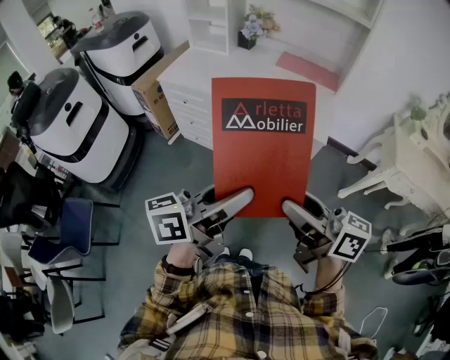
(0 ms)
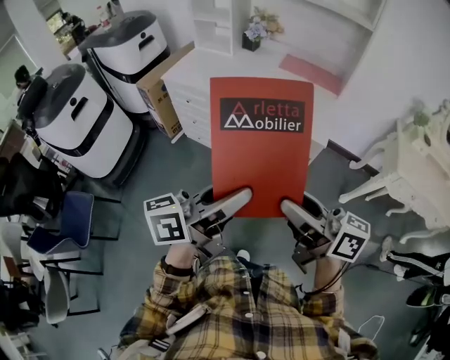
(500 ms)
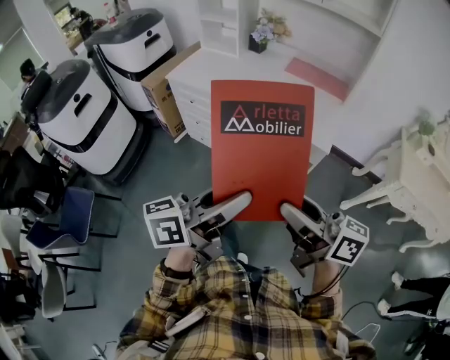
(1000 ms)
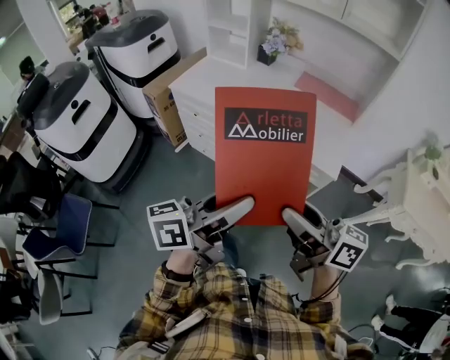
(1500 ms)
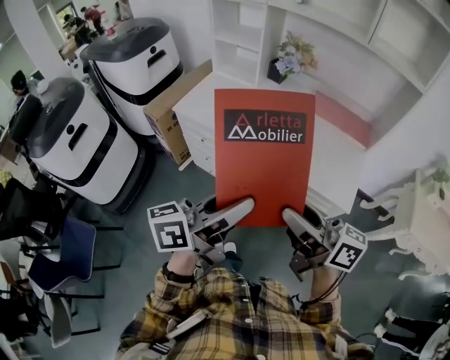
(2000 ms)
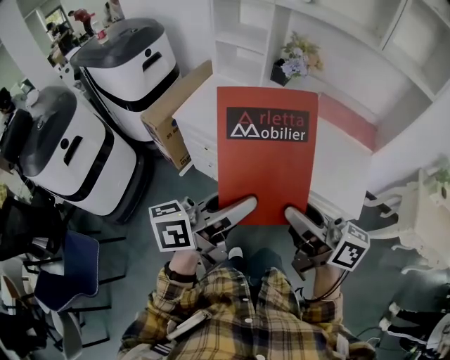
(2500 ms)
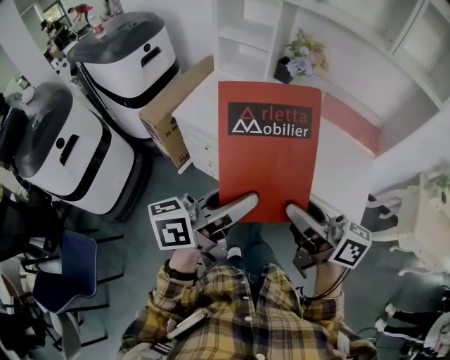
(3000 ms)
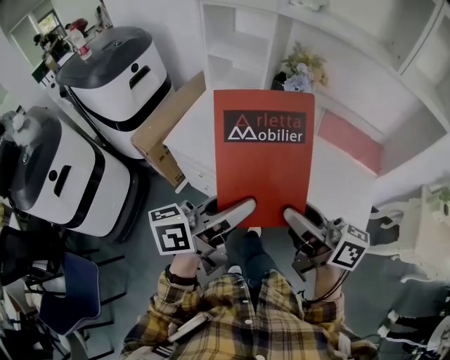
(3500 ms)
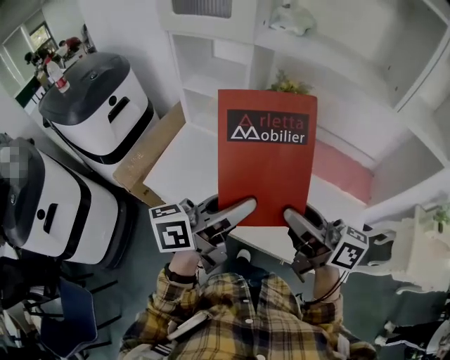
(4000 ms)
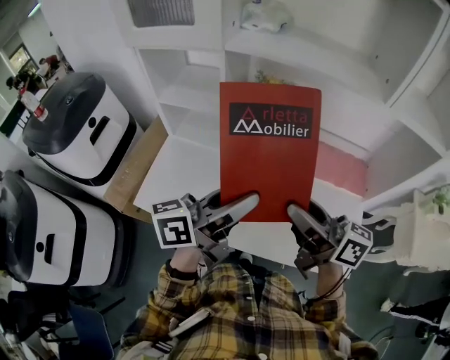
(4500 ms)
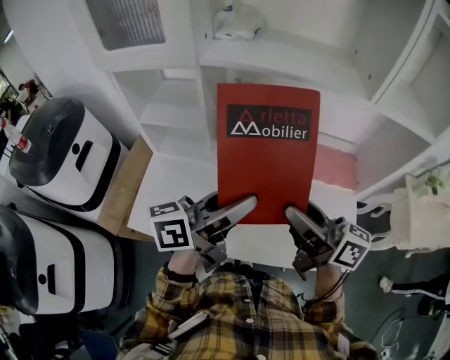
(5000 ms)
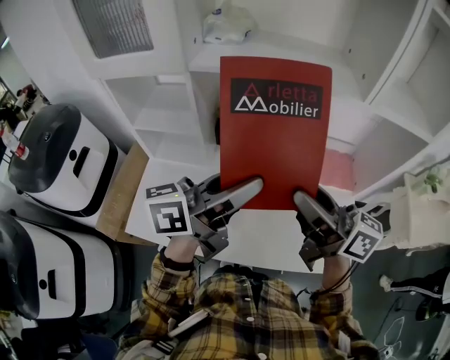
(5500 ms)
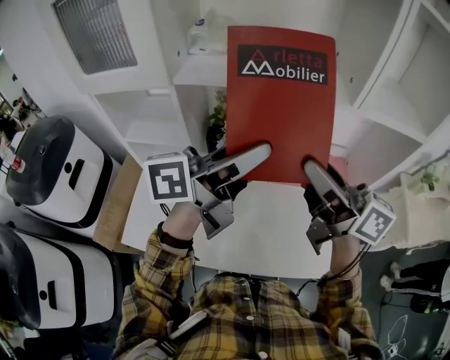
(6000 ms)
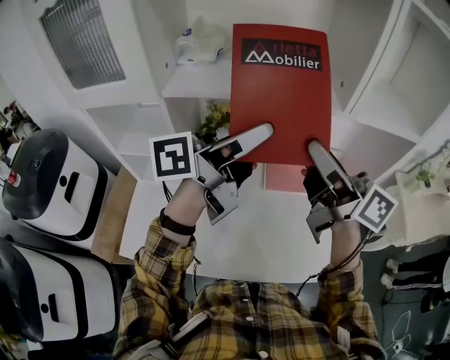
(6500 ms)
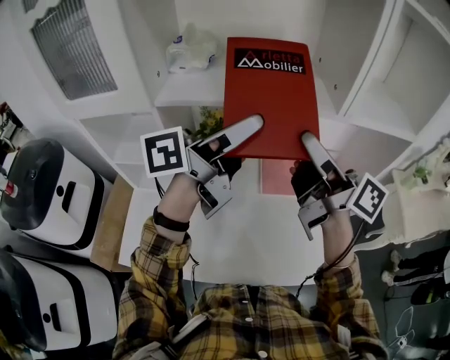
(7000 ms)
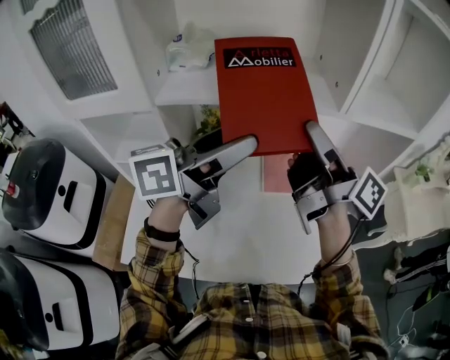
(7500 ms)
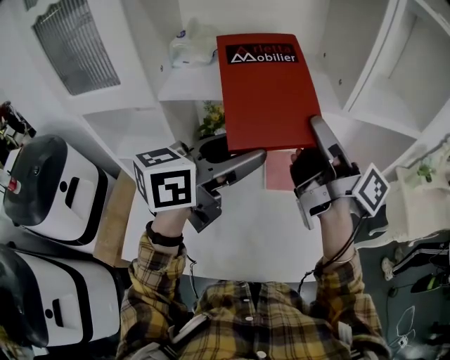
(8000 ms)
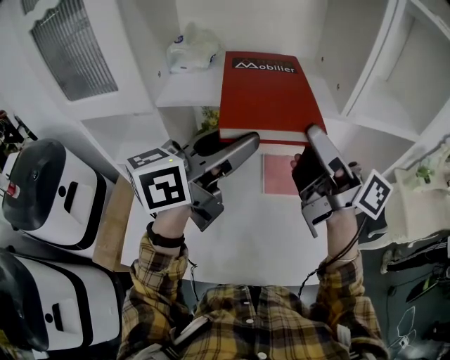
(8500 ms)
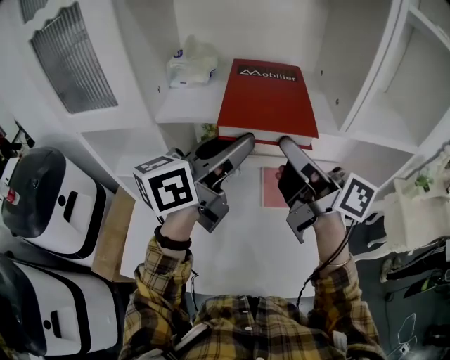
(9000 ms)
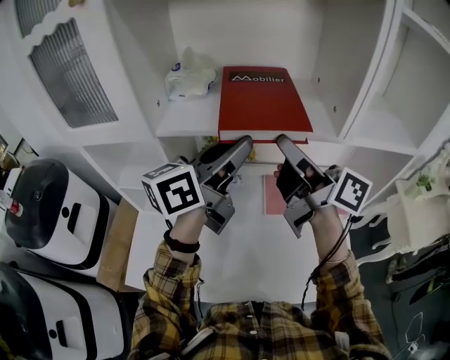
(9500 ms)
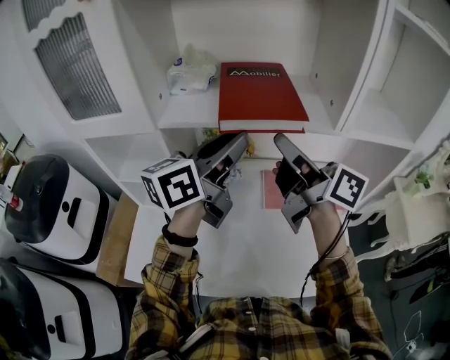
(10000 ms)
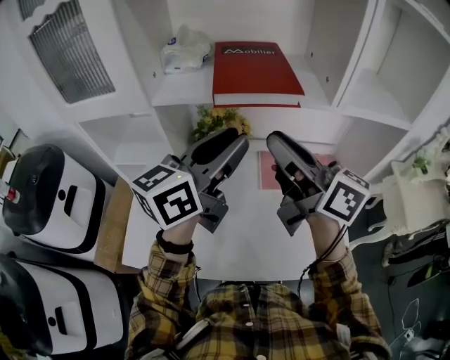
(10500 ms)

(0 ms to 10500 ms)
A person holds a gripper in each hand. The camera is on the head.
0 ms - 2000 ms: The right gripper goes backward and returns, approximately 15 cm each way. Meanwhile the left gripper goes backward and returns, roughly 15 cm each way.
2000 ms - 4000 ms: The right gripper goes forward and backward, about 15 cm each way, reversing 2 times; the left gripper swings forward and backward, about 15 cm each way, with 2 reversals.
4000 ms - 6500 ms: The grippers both shift forward, upward and to the right by some 25 cm. The right gripper changes its angle by some 30 degrees. The left gripper turns by some 20 degrees.
6500 ms - 8500 ms: The left gripper changes its angle by approximately 30 degrees, and opens, then closes once more.
8500 ms - 10500 ms: The right gripper shifts by about 5 cm, changes its angle by about 20 degrees, and closes its fingers.

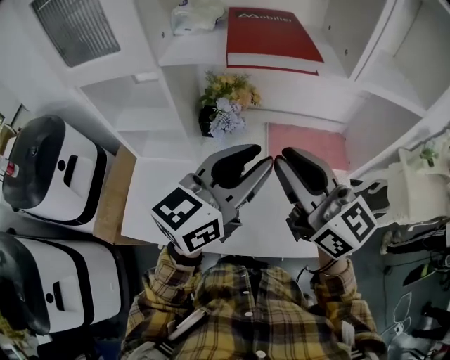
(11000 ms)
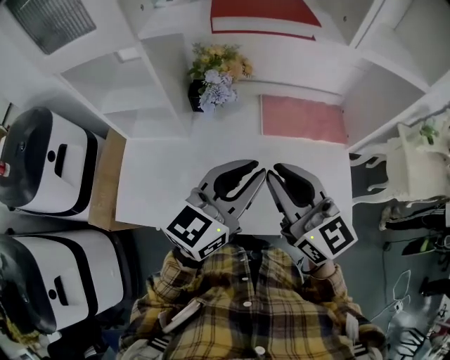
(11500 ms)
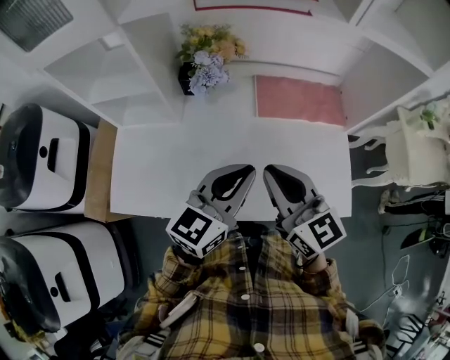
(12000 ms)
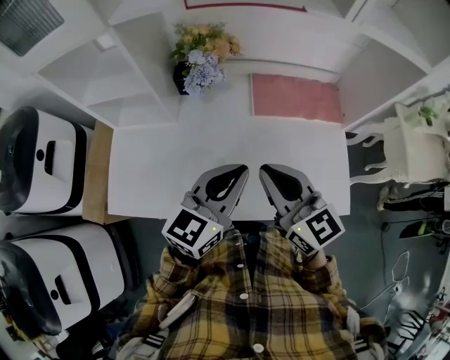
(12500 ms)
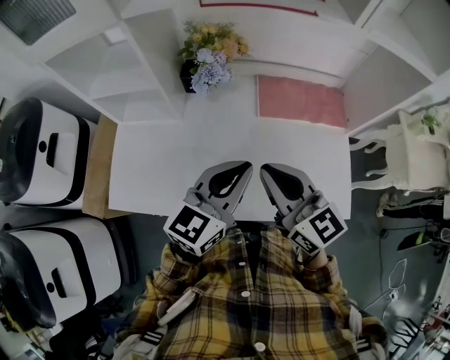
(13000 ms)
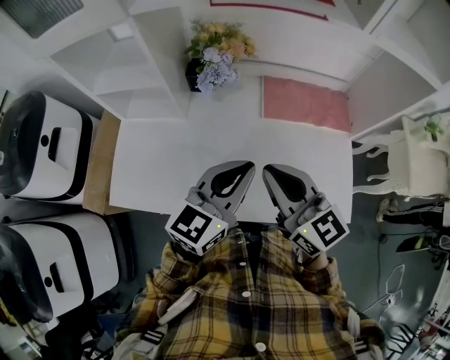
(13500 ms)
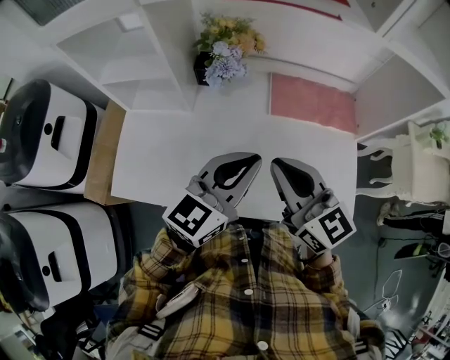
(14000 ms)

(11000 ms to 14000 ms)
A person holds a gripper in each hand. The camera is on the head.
11000 ms - 12500 ms: Both grippers move downward, approximately 15 cm.
12500 ms - 14000 ms: The grippers stay close to where they were, moving slightly.

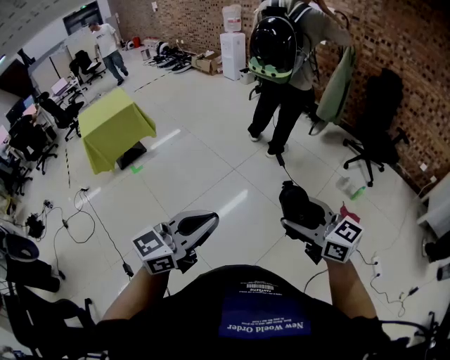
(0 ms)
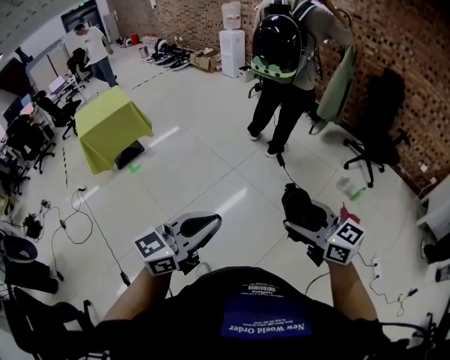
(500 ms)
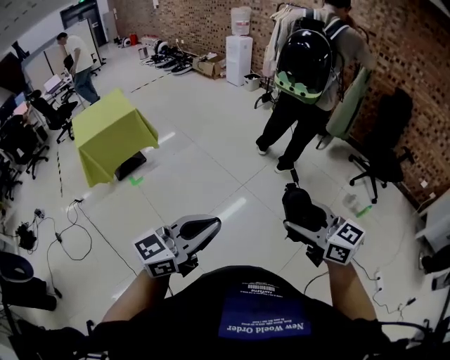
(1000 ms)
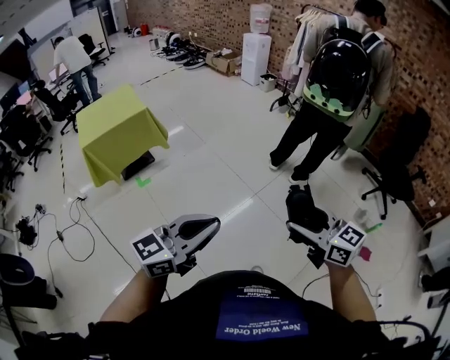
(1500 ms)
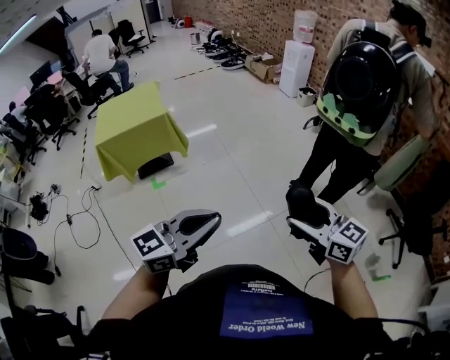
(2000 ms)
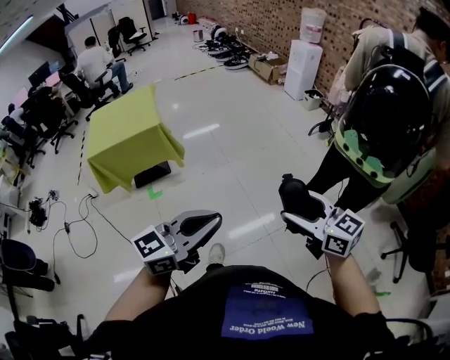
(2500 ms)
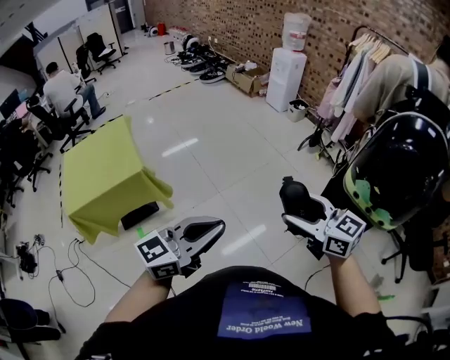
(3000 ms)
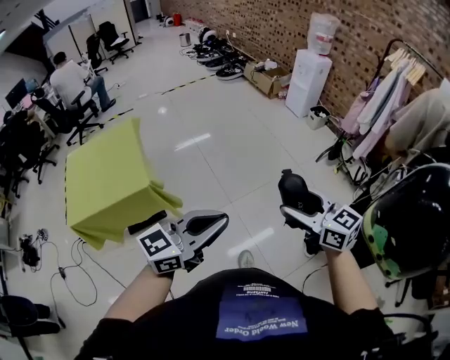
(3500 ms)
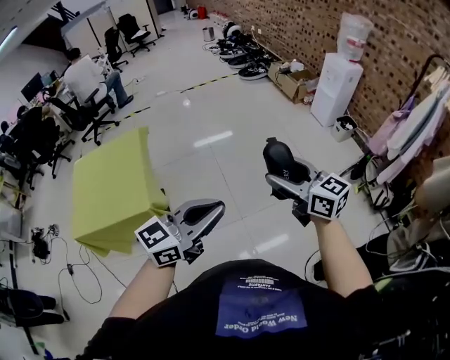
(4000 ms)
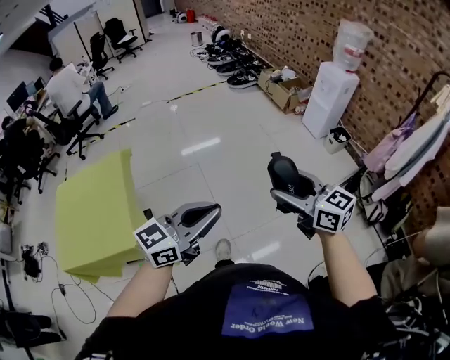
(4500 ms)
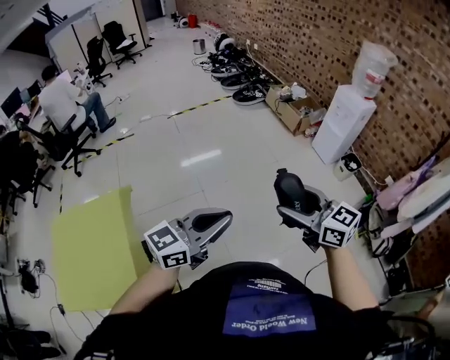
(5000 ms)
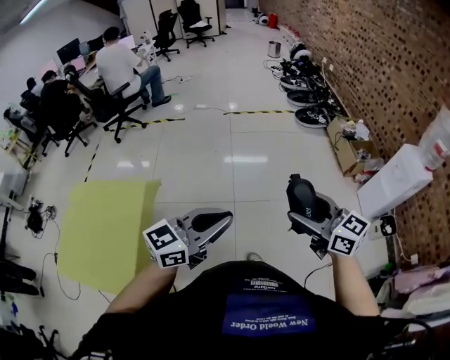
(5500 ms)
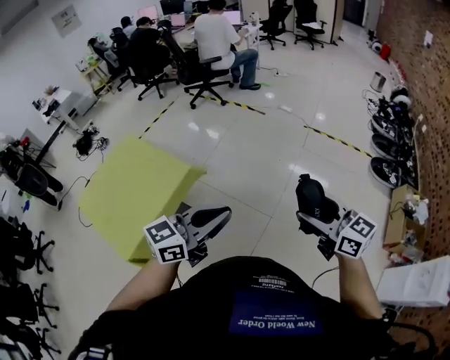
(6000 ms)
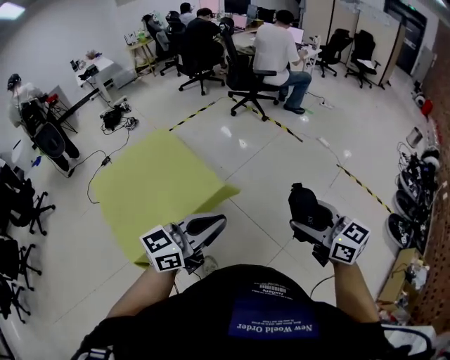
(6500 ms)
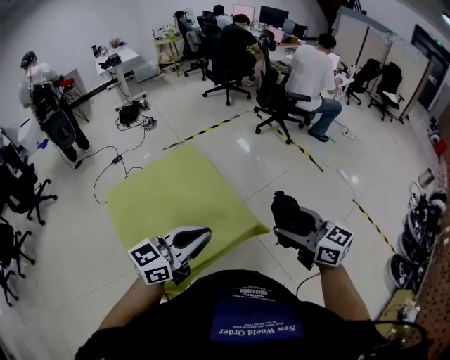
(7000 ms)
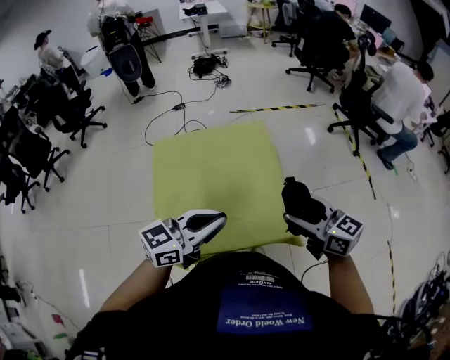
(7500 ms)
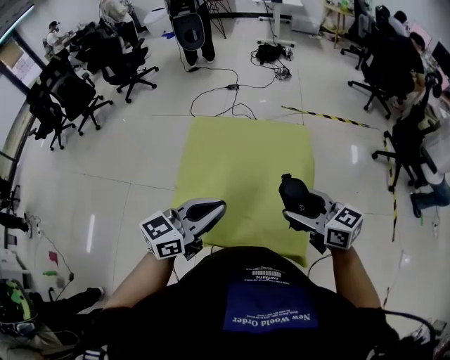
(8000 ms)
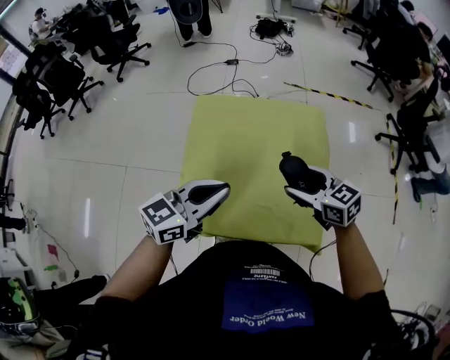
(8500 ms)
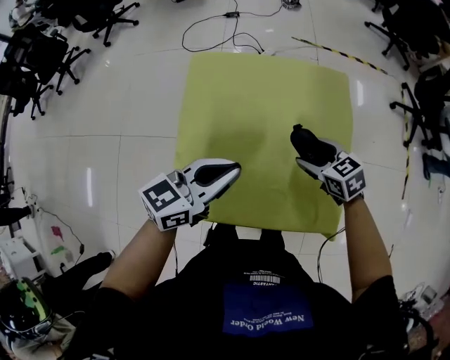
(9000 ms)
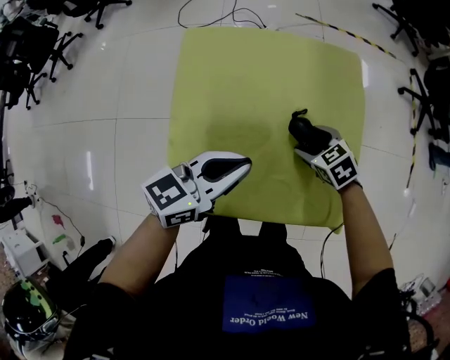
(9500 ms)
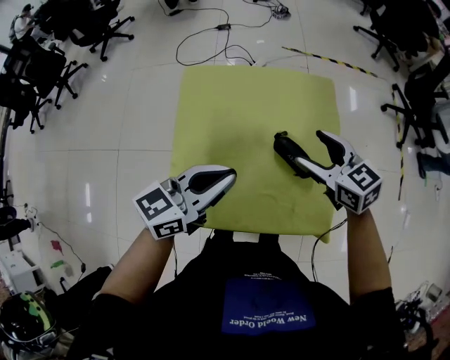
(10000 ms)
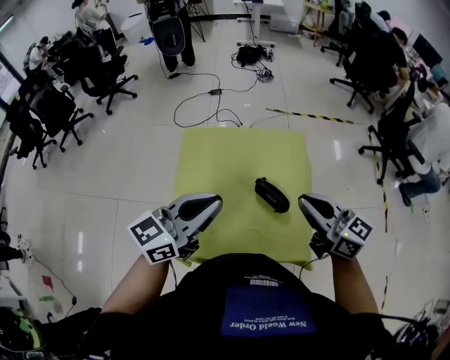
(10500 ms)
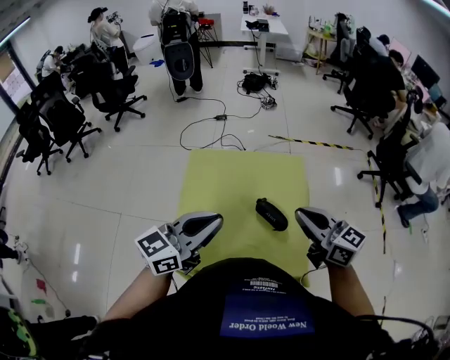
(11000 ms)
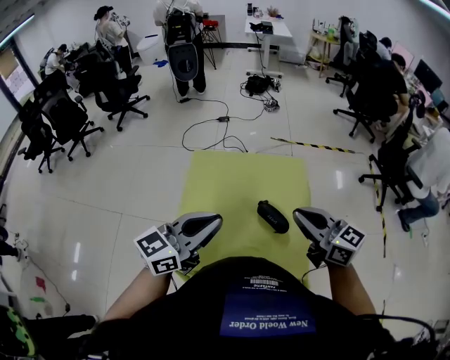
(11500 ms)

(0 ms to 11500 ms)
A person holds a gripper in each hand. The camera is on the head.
0 ms - 2000 ms: Both grippers are carried forward and to the left, approximately 60 cm.
2000 ms - 4000 ms: The two grippers travel together, forward, roughly 90 cm.
4000 ms - 6000 ms: The two grippers travel together, approximately 70 cm. The right gripper rotates roughly 50 degrees. The left gripper turns by some 50 degrees.
6000 ms - 7500 ms: Both grippers are carried roughly 60 cm. The right gripper swivels about 50 degrees. The left gripper changes its angle by about 50 degrees.
7500 ms - 9500 ms: The right gripper shifts roughly 35 cm downward and forward, and points its fingers some 50 degrees further downward; the left gripper moves downward, forward and to the left, about 20 cm.
9500 ms - 11500 ms: The left gripper shifts about 20 cm upward. Meanwhile the right gripper moves upward, approximately 35 cm, angles its fingers upward, by about 50 degrees, and closes up.

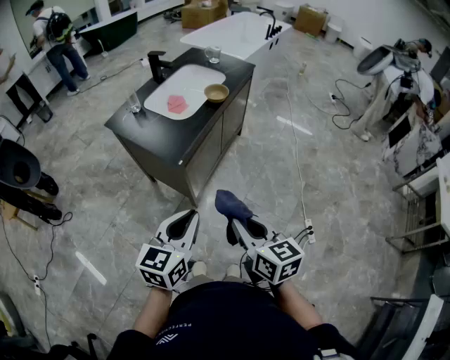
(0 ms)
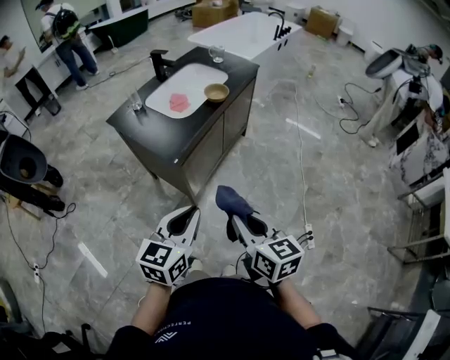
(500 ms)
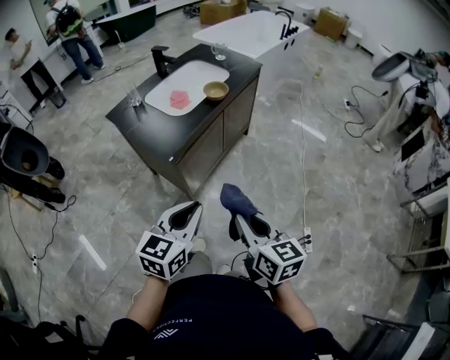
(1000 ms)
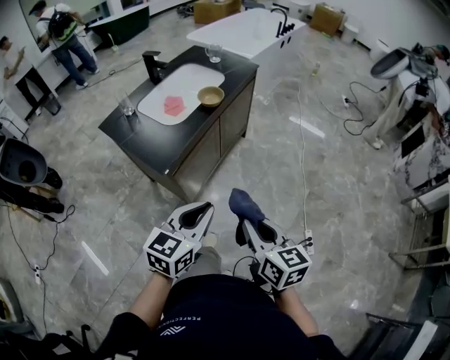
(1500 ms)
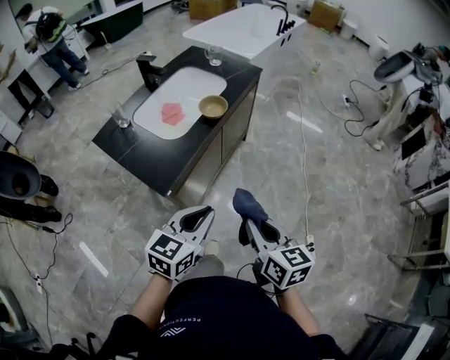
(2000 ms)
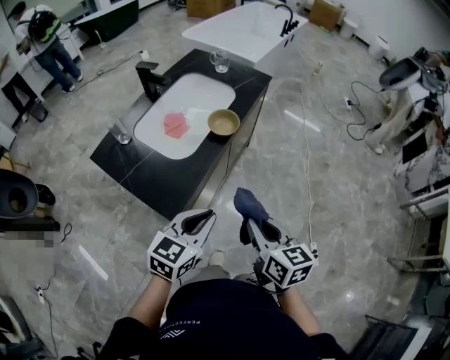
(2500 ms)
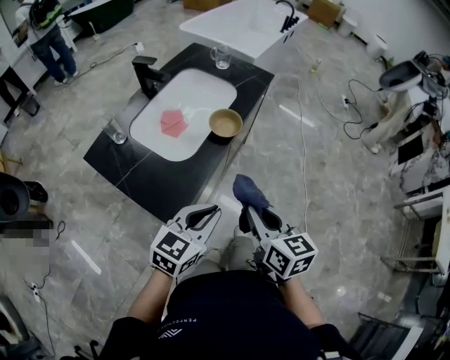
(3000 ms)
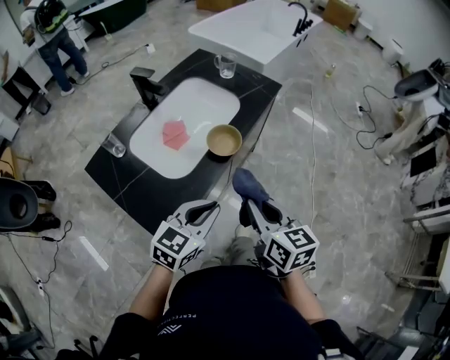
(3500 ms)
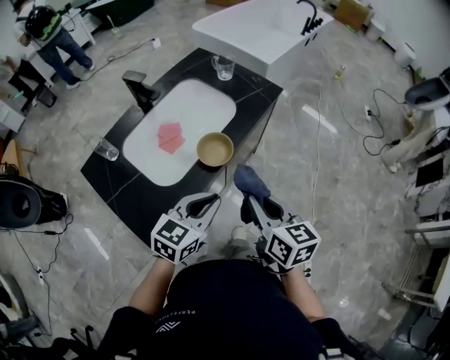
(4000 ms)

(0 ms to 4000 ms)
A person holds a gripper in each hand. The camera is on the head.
0 ms - 2000 ms: The grippers both shift forward and to the right by approximately 15 cm.
2000 ms - 4000 ms: Both grippers travel together forward, some 25 cm.
